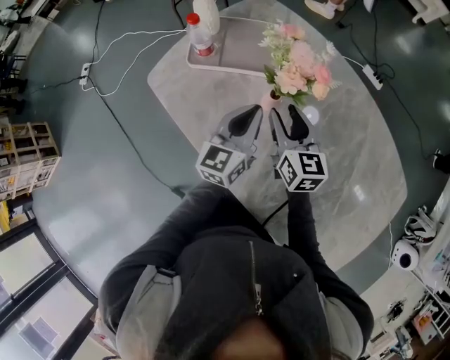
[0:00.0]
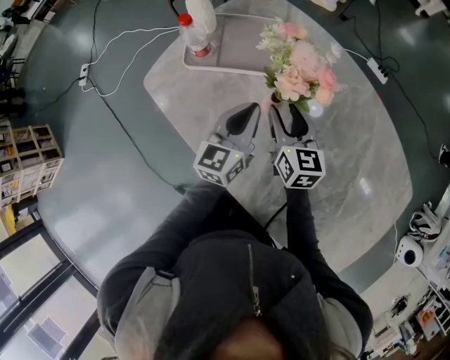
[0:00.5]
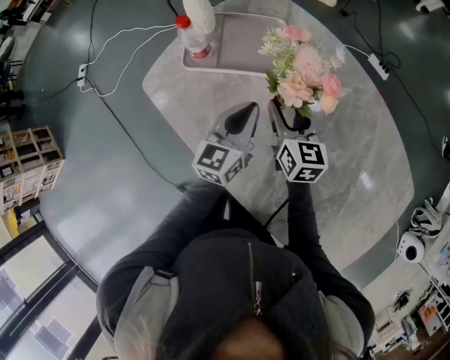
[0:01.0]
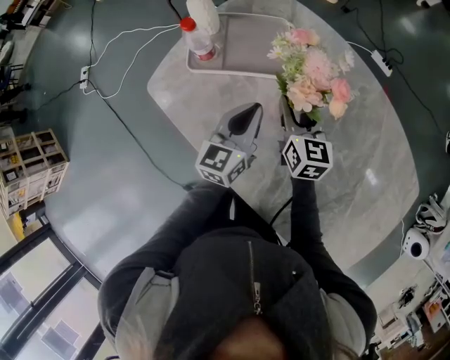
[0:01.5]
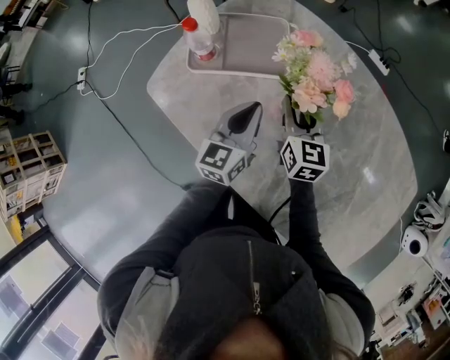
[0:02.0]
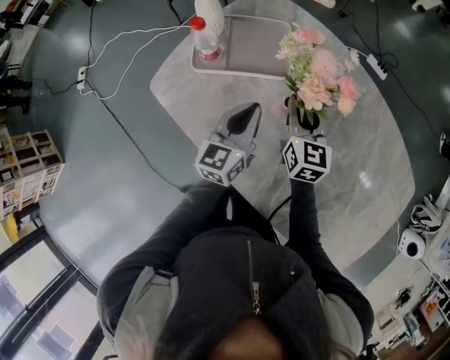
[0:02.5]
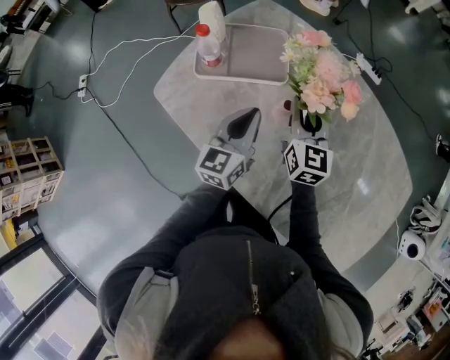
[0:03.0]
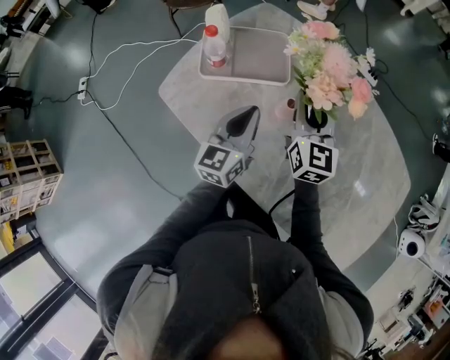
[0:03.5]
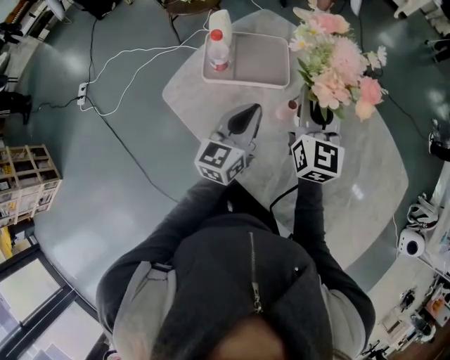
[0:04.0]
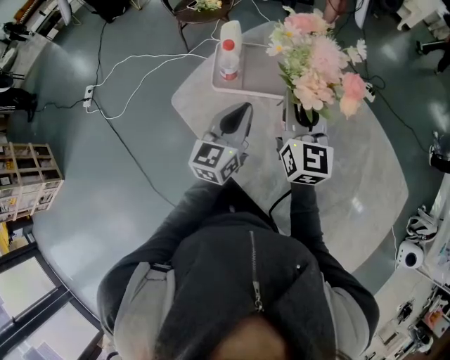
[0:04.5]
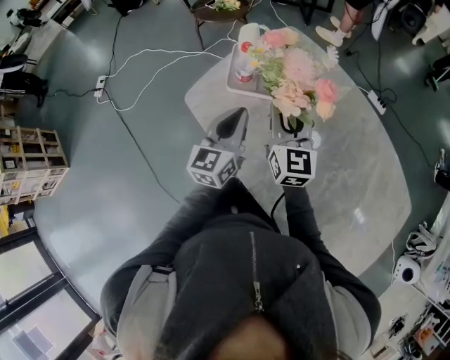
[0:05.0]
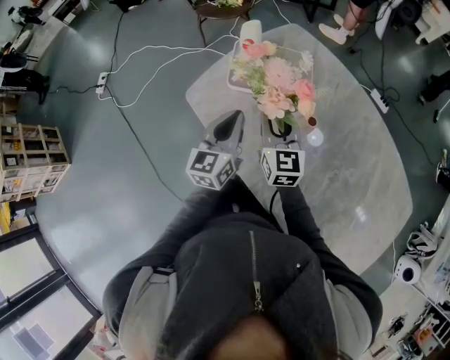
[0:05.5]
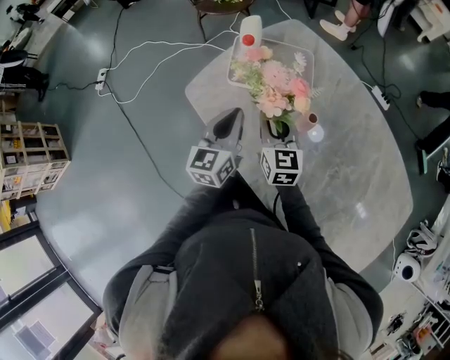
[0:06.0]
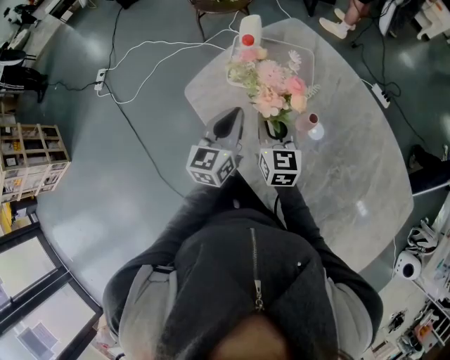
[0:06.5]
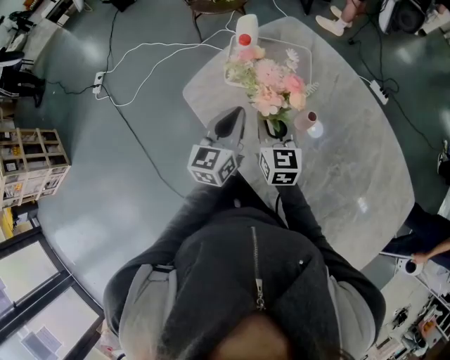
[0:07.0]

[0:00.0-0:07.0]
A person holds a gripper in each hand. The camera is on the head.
0:00.0 to 0:02.0: The left gripper shifts by approximately 5 cm. Meanwhile the right gripper travels forward by approximately 5 cm.
0:02.0 to 0:03.5: The left gripper shifts by roughly 5 cm, while the right gripper shifts about 10 cm upward.
0:03.5 to 0:05.0: Both grippers travel together to the left, some 10 cm.
0:05.0 to 0:07.0: The right gripper goes roughly 10 cm downward.

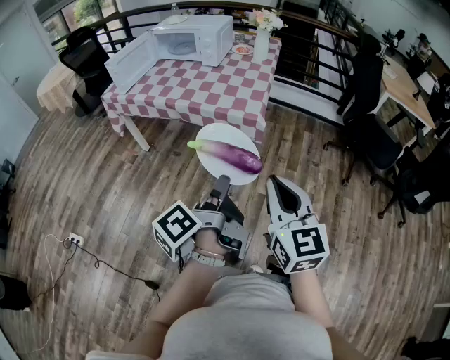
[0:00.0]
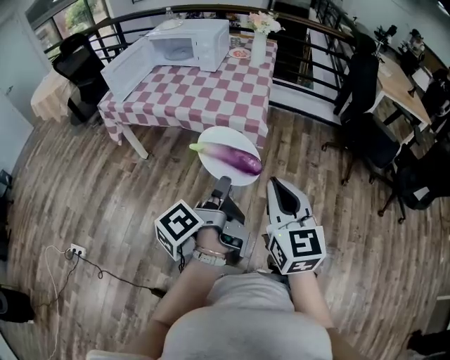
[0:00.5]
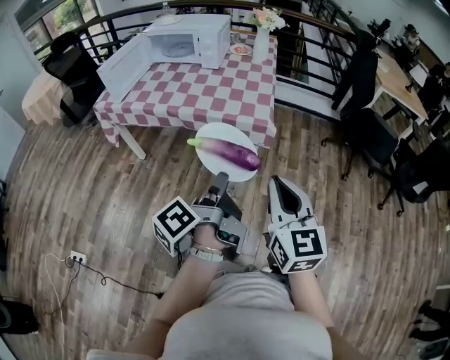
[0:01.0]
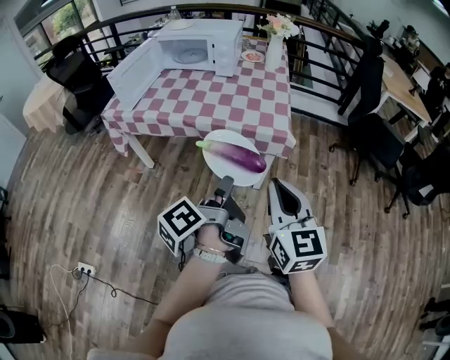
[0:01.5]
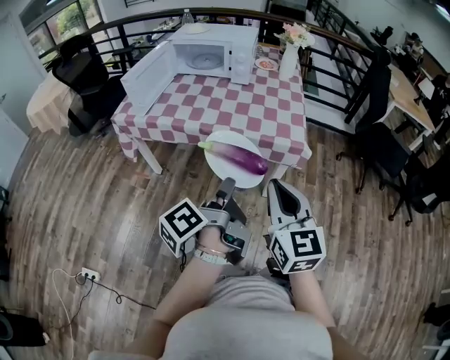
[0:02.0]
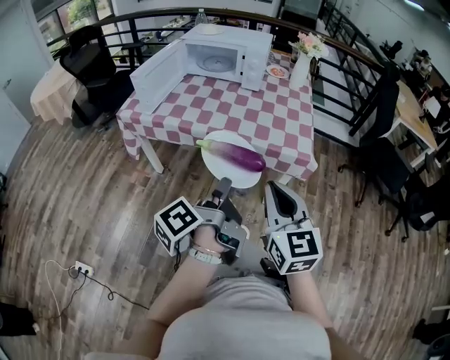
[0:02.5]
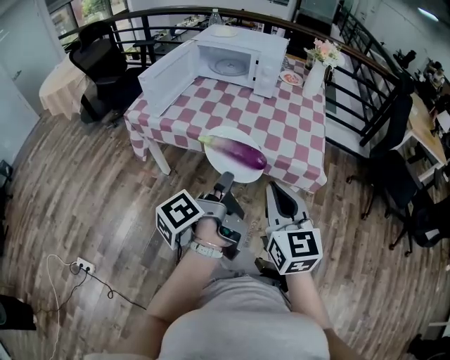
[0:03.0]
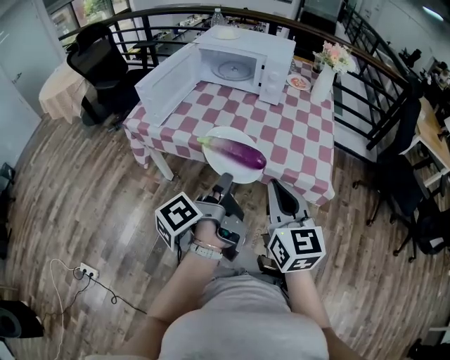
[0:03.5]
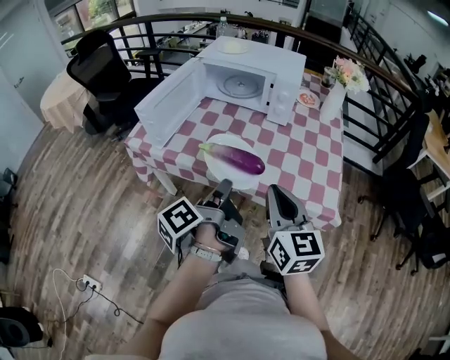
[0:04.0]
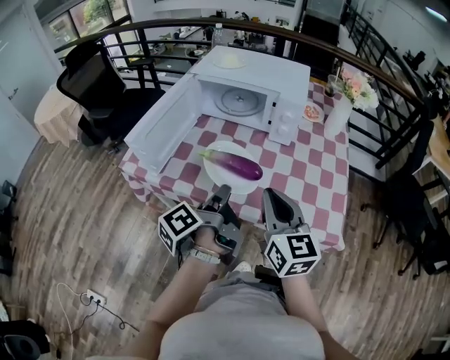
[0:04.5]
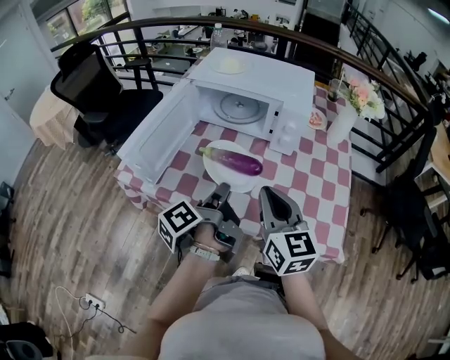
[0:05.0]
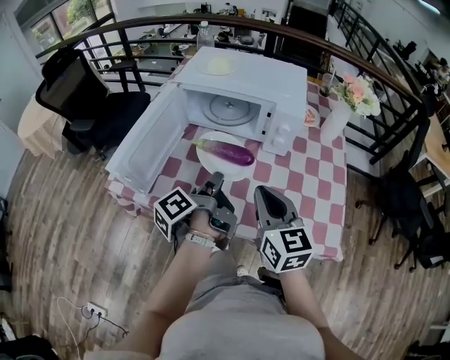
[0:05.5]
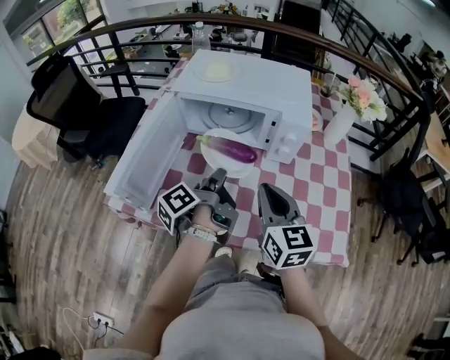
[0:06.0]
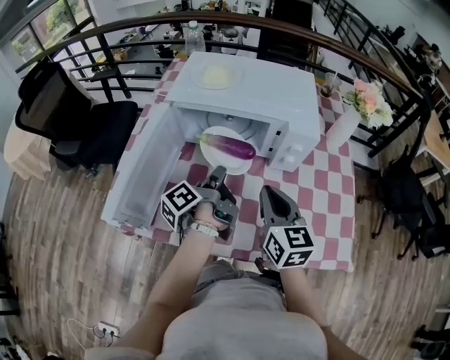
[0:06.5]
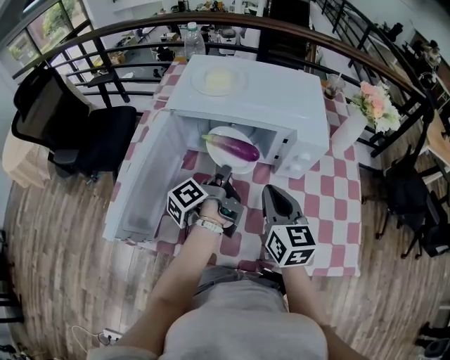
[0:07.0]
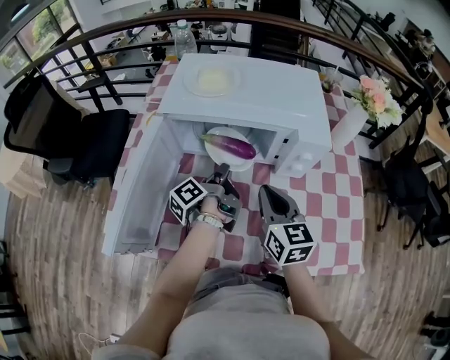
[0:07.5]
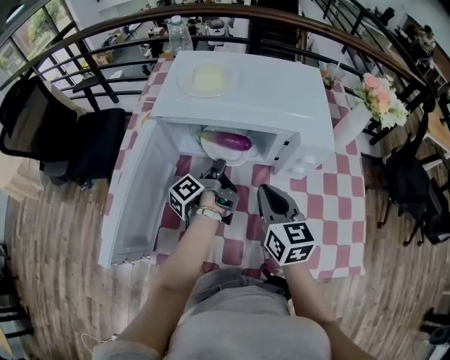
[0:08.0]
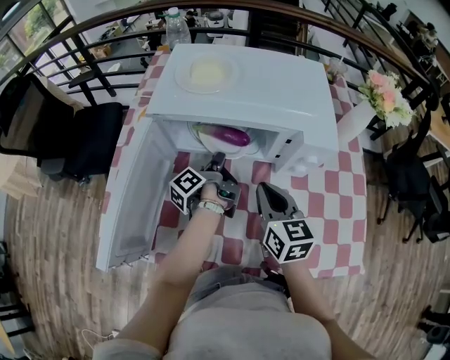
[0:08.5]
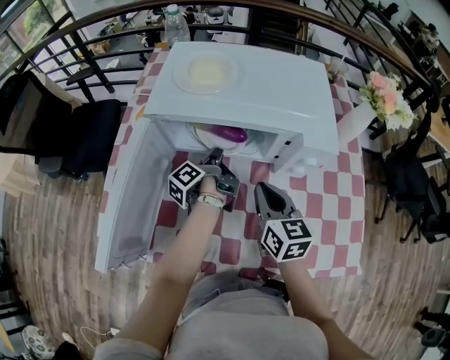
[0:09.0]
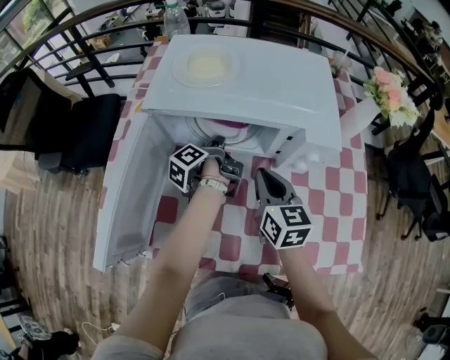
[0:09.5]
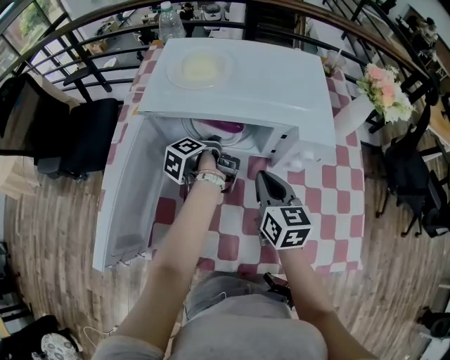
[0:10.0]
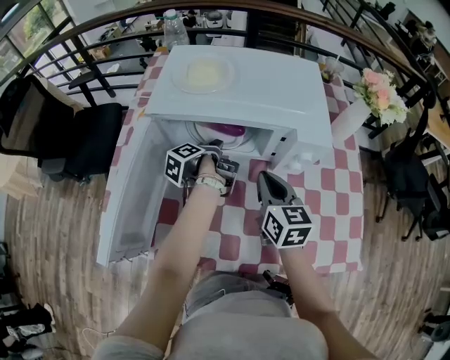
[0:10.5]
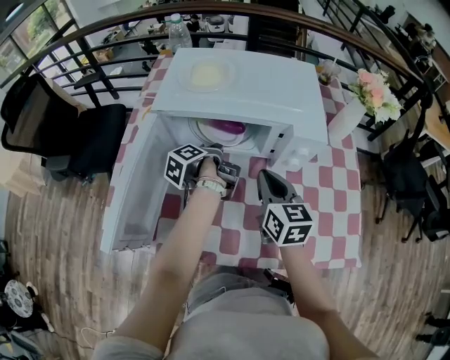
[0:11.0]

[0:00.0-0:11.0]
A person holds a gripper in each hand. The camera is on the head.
0:00.0 to 0:02.0: The right gripper moves approximately 30 cm.
0:02.0 to 0:03.5: The right gripper shifts by approximately 15 cm.
0:03.5 to 0:05.5: The right gripper moves roughly 30 cm.
0:05.5 to 0:07.5: The right gripper shifts by about 20 cm.

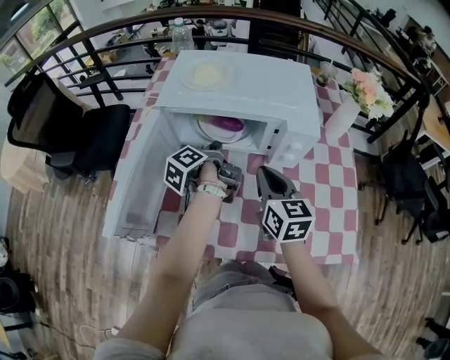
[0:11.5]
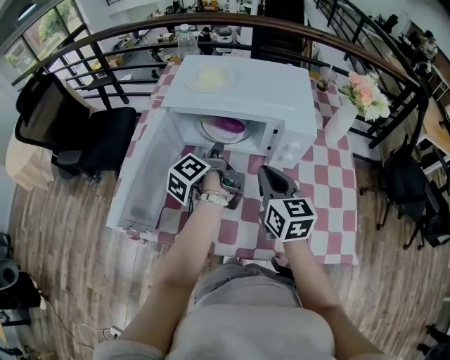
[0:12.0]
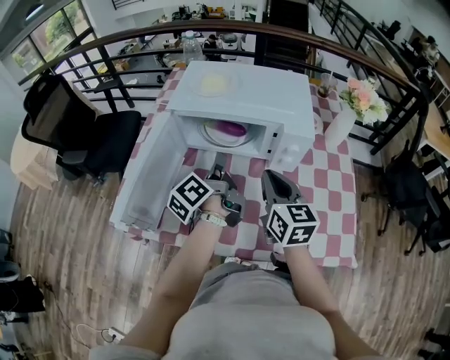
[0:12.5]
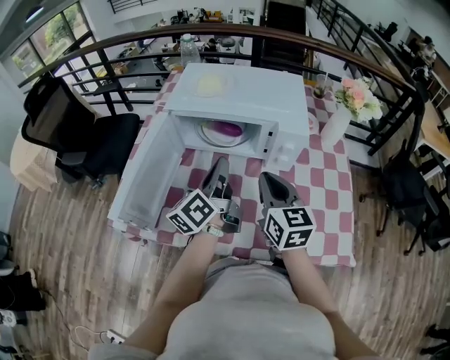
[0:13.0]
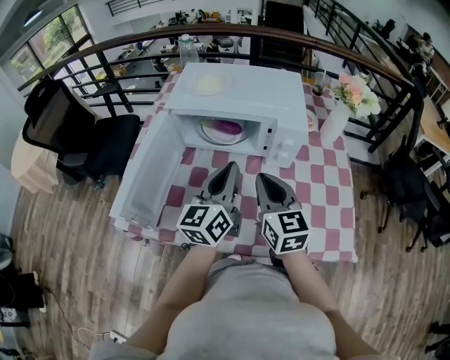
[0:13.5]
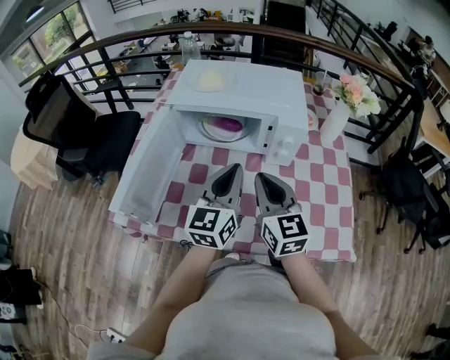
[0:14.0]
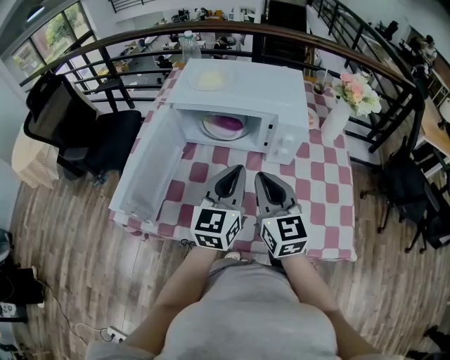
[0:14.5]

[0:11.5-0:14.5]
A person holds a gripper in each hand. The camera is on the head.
0:11.5 to 0:13.0: The right gripper shifts by some 5 cm.

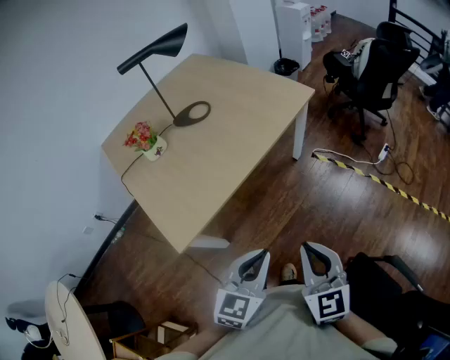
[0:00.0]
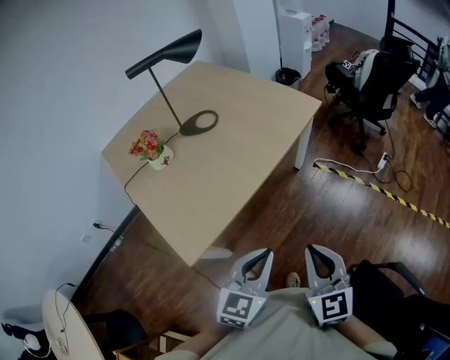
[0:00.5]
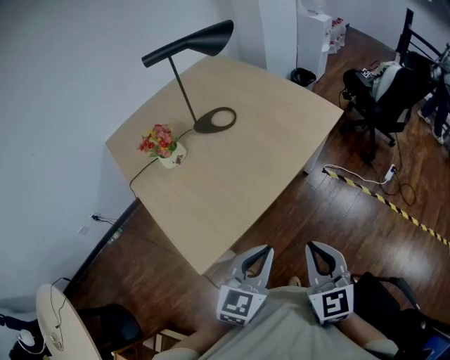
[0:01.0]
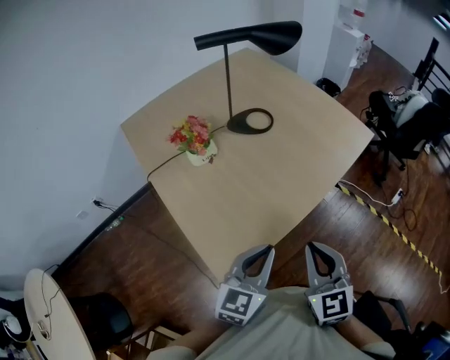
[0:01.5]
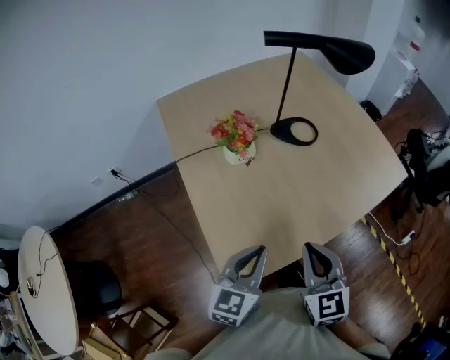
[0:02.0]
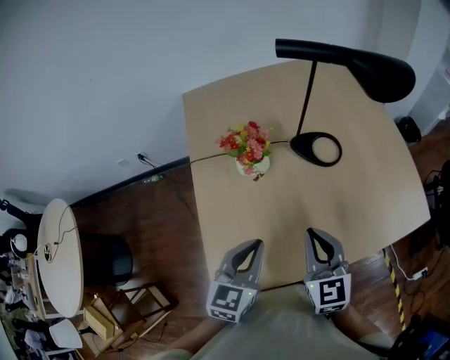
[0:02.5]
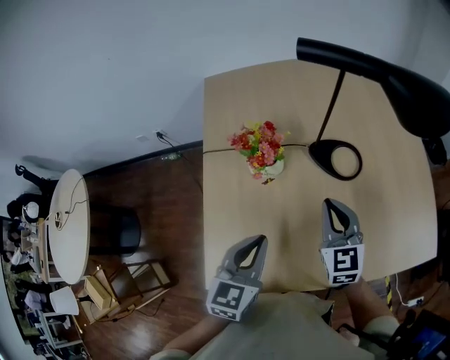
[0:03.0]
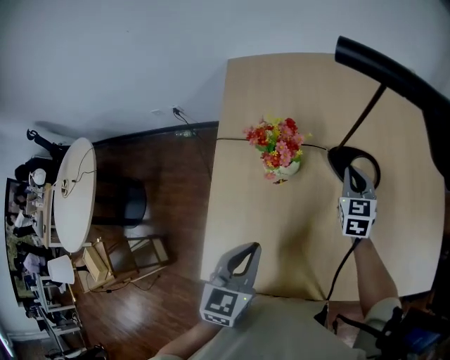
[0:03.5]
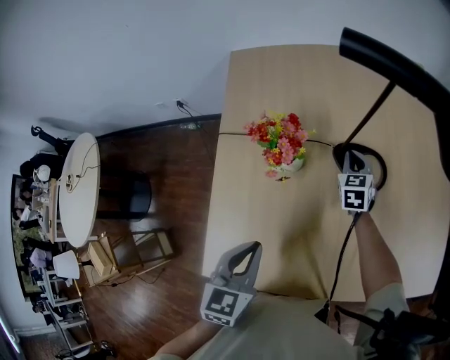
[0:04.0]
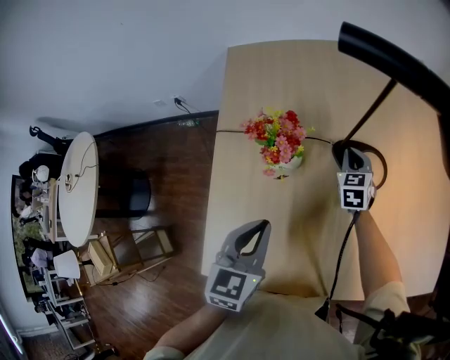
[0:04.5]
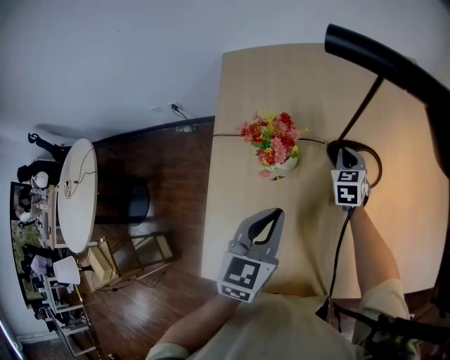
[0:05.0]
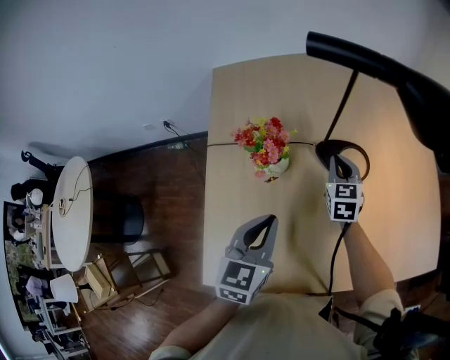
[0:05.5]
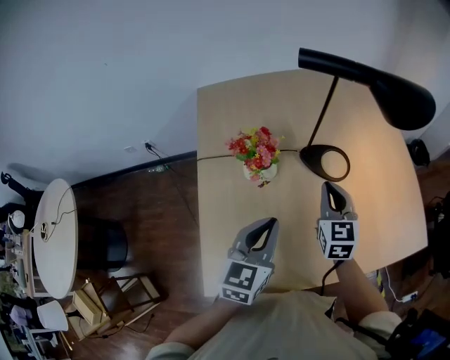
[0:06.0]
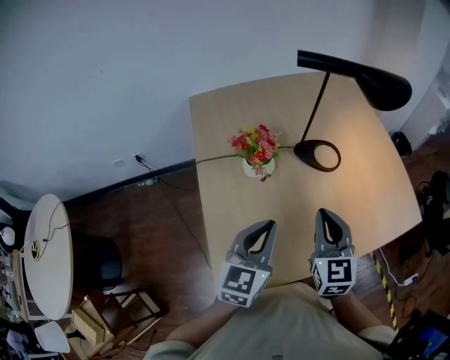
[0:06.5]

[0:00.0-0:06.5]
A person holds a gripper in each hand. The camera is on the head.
0:00.0 to 0:02.0: The grippers both shift to the left and forward by about 35 cm. The left gripper changes its angle by some 30 degrees. Meanwhile the right gripper swivels about 20 degrees.
0:02.0 to 0:04.5: The left gripper ends up approximately 20 cm from where it was, and changes its angle by approximately 40 degrees. The right gripper shifts by some 50 cm, and swivels about 20 degrees.
0:04.5 to 0:06.5: The left gripper goes some 10 cm backward and upward, and swivels approximately 30 degrees. Meanwhile the right gripper heads backward and upward, covering about 35 cm, and rotates about 30 degrees.
